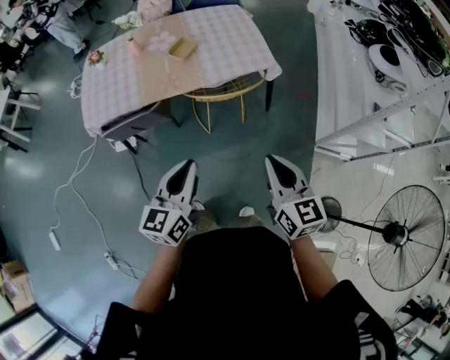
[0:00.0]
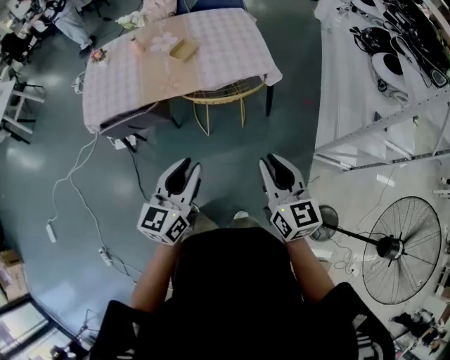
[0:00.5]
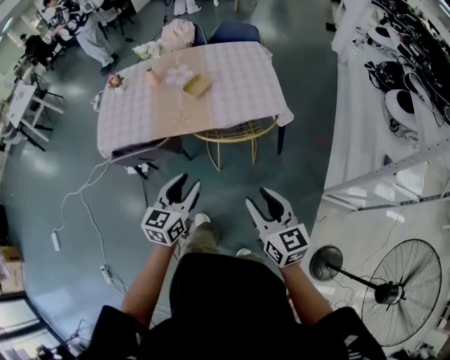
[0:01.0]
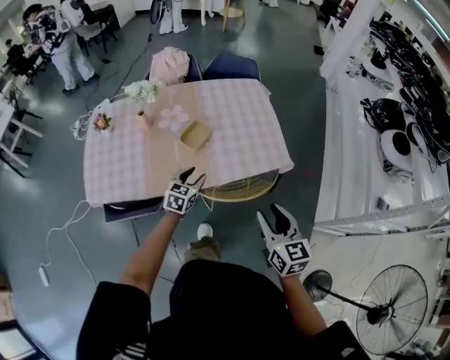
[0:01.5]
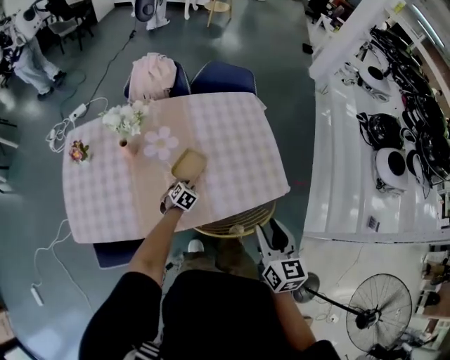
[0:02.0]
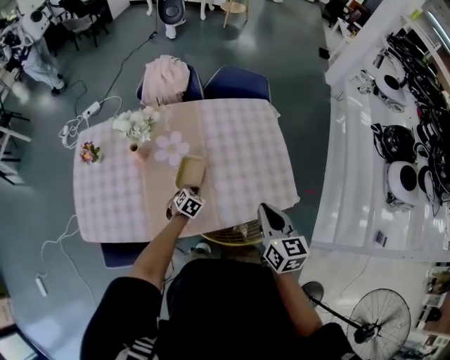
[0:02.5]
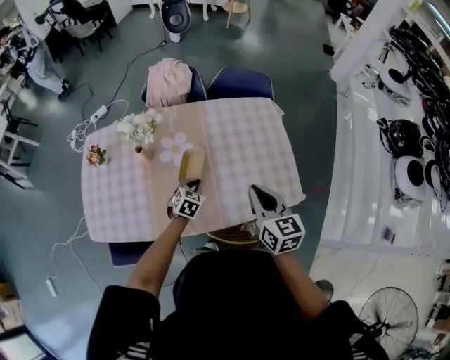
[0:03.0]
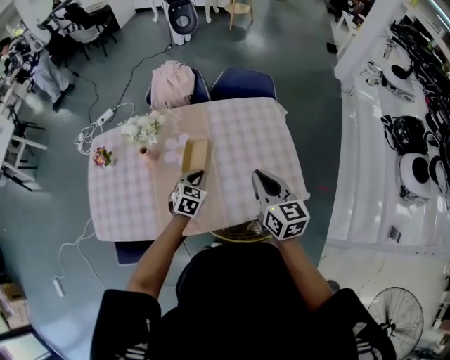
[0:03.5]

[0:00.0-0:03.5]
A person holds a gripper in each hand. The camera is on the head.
0:00.0 to 0:02.0: Both grippers are carried forward, approximately 50 cm. The right gripper opens up. Meanwhile the left gripper is displaced downward by about 40 cm, angles its fingers downward, by roughly 50 degrees, and opens its fingers.
0:02.0 to 0:03.5: The right gripper shifts some 15 cm forward, and closes; the left gripper travels upward by roughly 15 cm, and closes up.

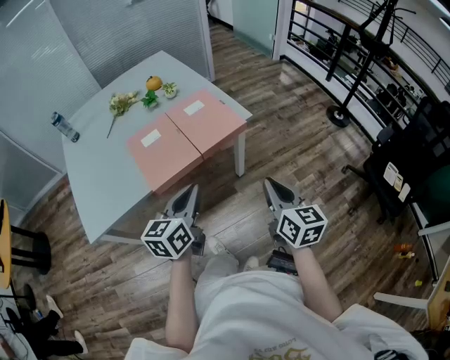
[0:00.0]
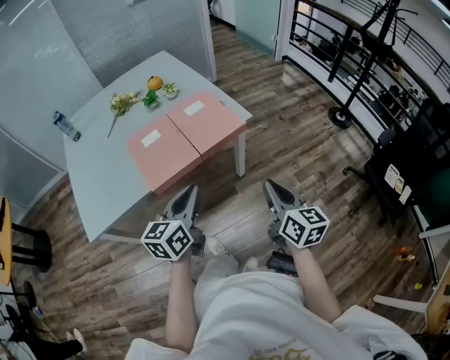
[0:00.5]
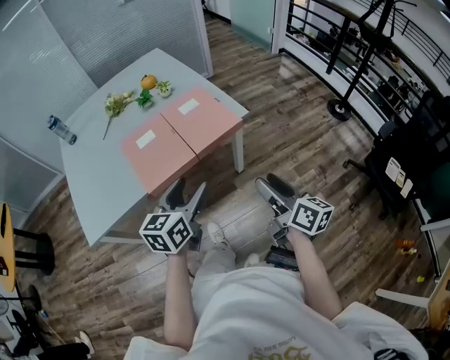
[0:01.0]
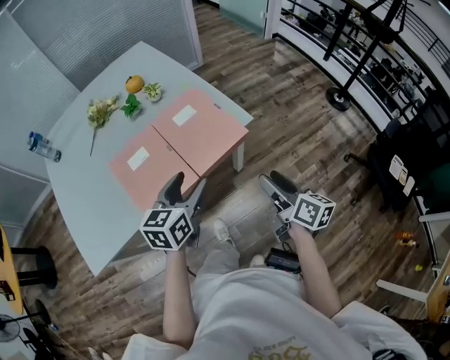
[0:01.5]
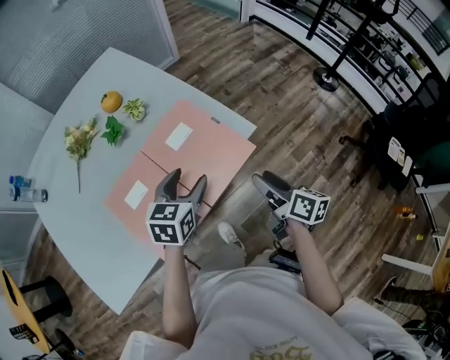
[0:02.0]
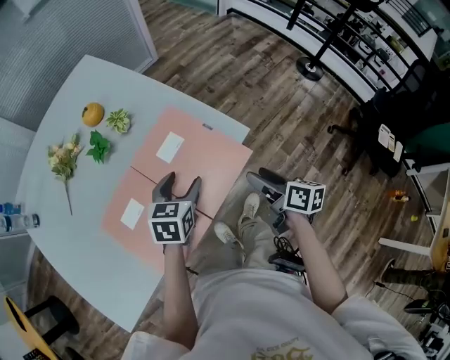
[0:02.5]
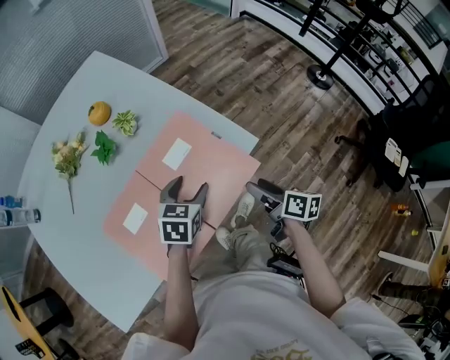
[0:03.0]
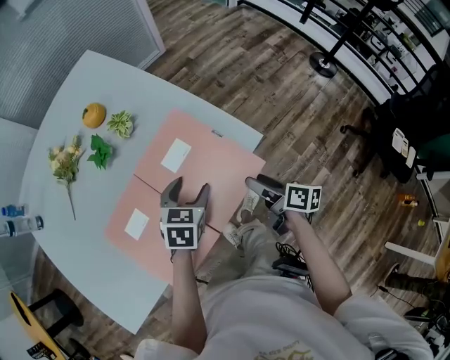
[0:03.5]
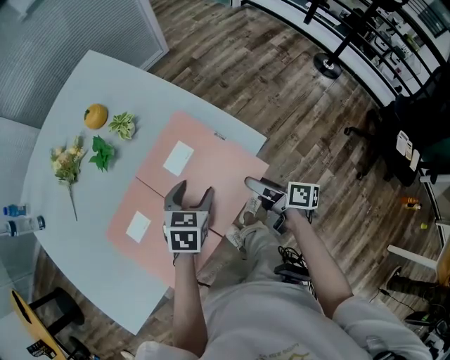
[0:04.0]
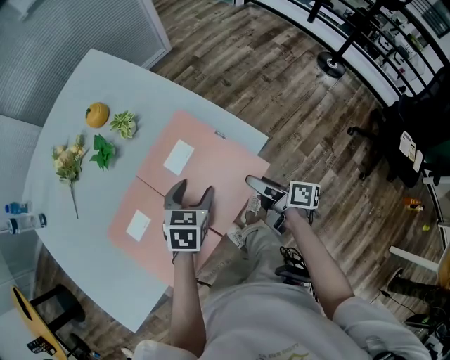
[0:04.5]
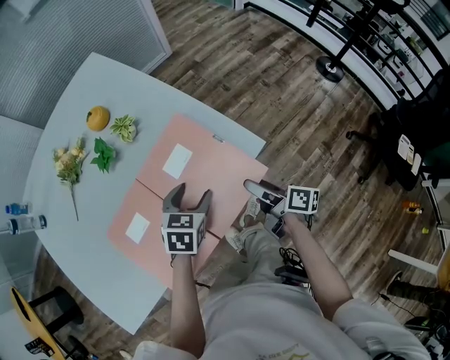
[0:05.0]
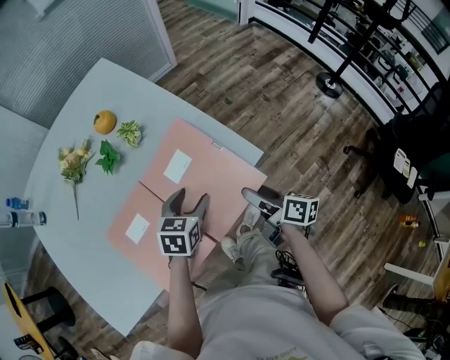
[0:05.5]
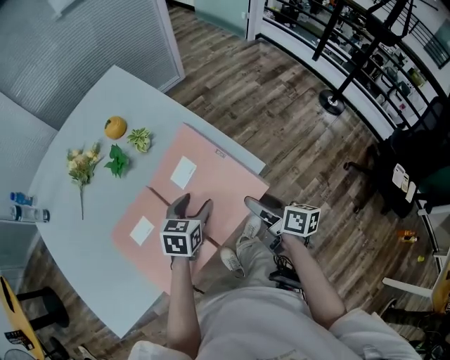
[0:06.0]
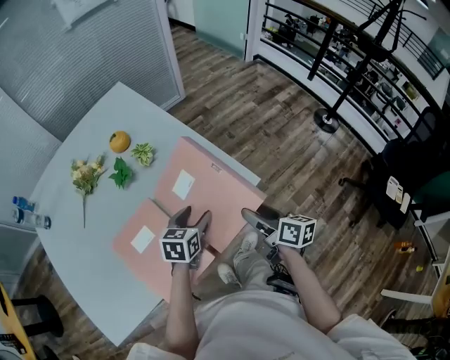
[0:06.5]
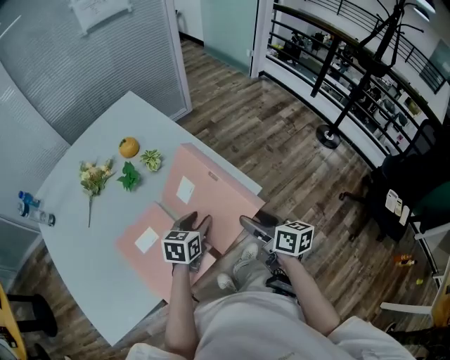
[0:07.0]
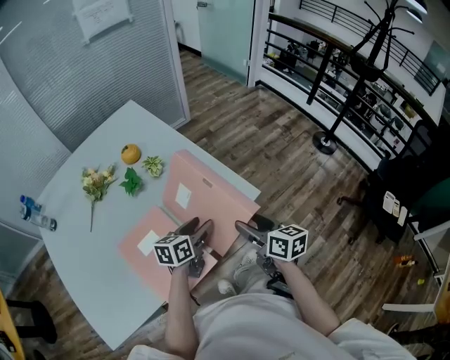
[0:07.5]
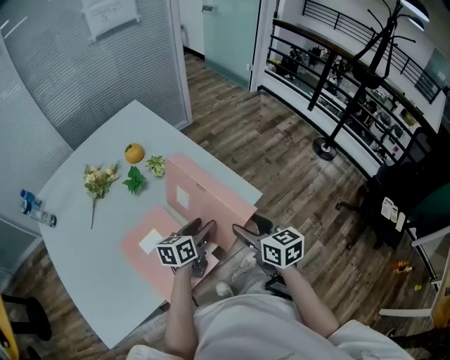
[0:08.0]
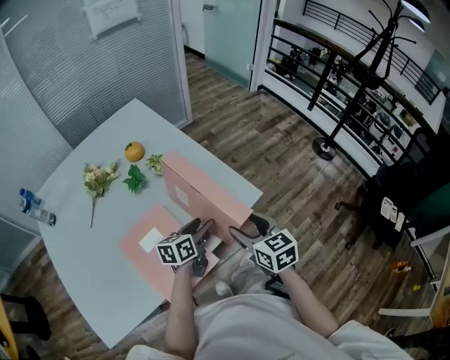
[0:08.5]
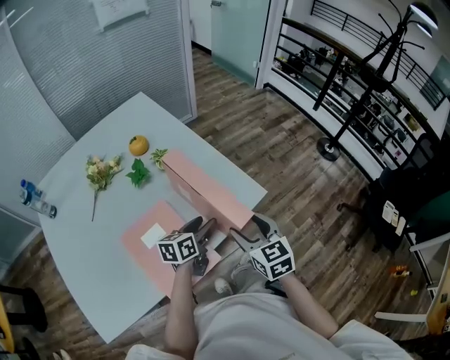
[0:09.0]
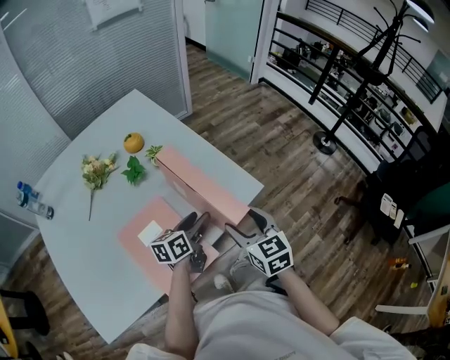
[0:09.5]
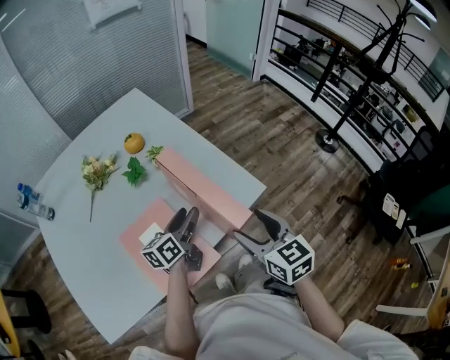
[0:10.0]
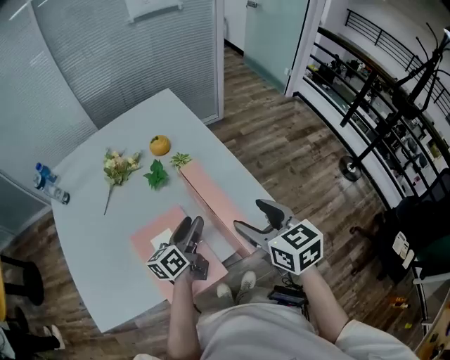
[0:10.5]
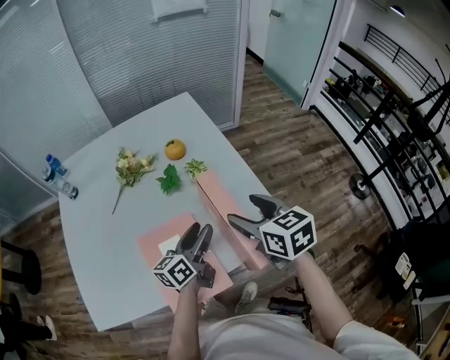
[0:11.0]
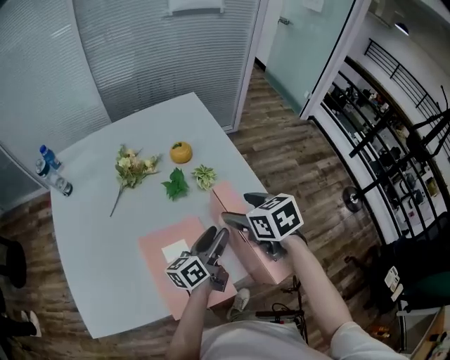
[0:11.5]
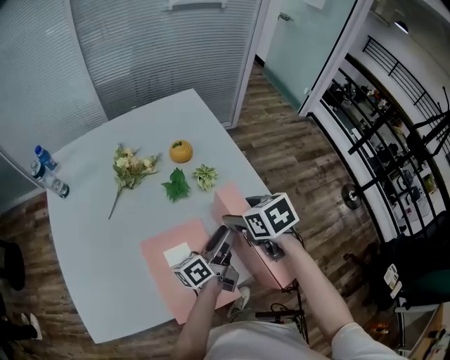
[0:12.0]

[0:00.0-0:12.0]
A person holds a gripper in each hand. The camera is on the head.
0:00.0 to 0:02.0: The right gripper goes some 30 cm forward and downward, swivels about 40 degrees, and opens its fingers; the left gripper travels forward by some 30 cm, rotates roughly 30 degrees, and opens.
0:02.0 to 0:04.0: The grippers both shift downward and forward by about 15 cm.
0:04.0 to 0:06.0: The right gripper shifts about 10 cm upward.
0:06.0 to 0:08.0: The right gripper goes about 10 cm upward and to the left, and rotates roughly 40 degrees, while the left gripper moves about 5 cm, and rotates approximately 30 degrees.
0:08.0 to 0:10.0: The right gripper moves upward, roughly 5 cm; the left gripper moves to the left, some 5 cm.
0:10.0 to 0:12.0: The right gripper is displaced forward and to the left by some 25 cm, and turns by some 40 degrees. Meanwhile the left gripper is displaced forward by some 10 cm, and rotates some 30 degrees.

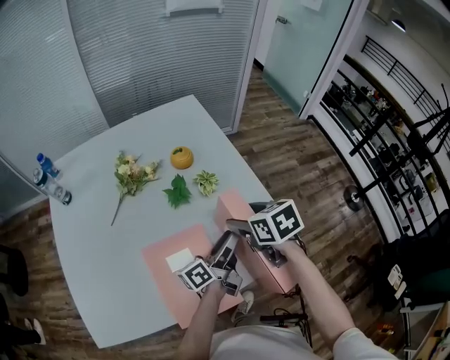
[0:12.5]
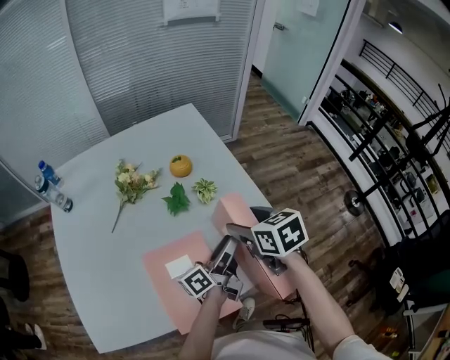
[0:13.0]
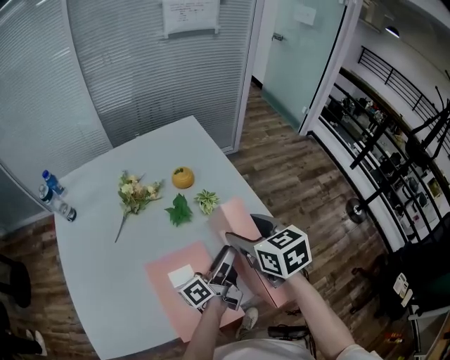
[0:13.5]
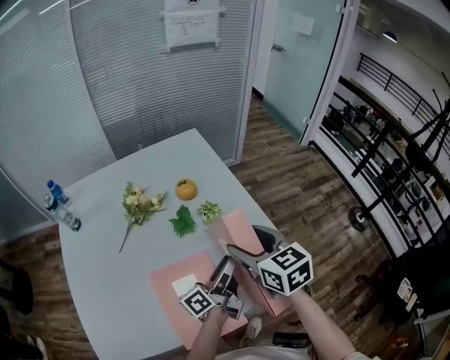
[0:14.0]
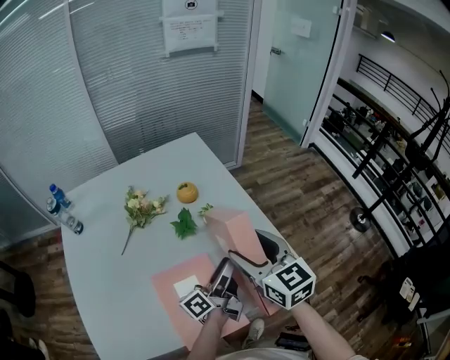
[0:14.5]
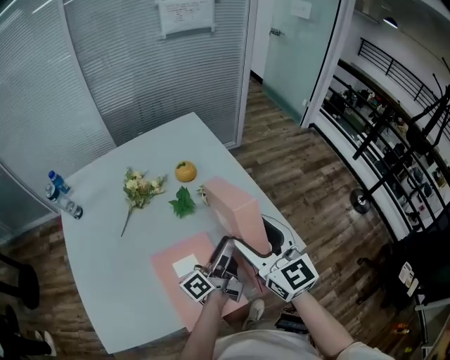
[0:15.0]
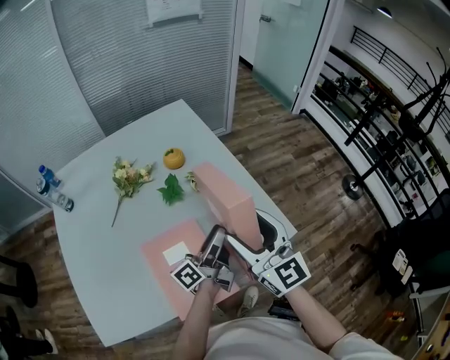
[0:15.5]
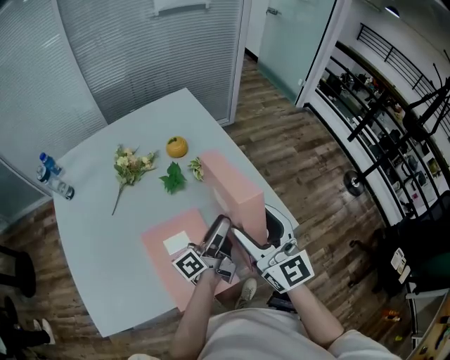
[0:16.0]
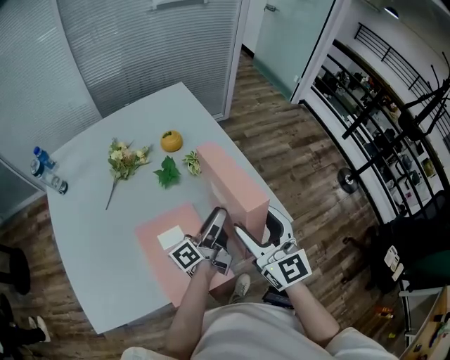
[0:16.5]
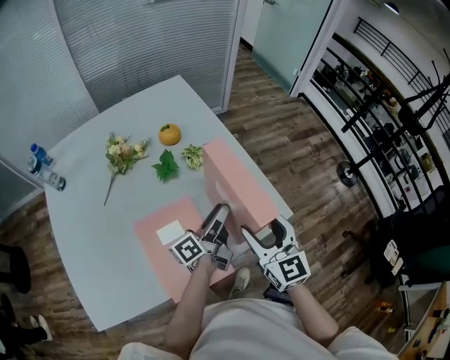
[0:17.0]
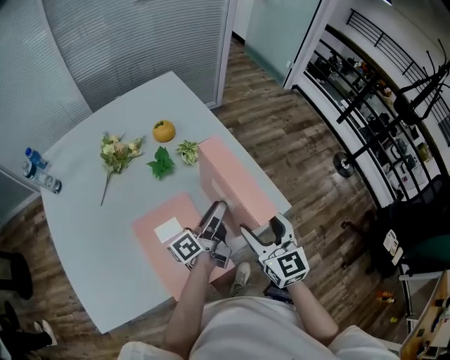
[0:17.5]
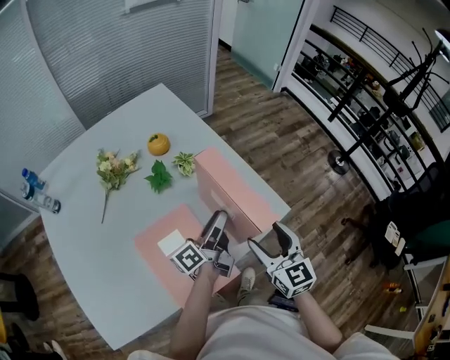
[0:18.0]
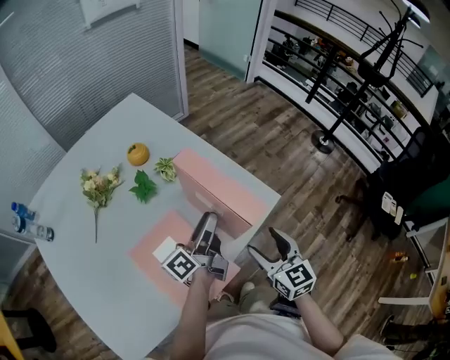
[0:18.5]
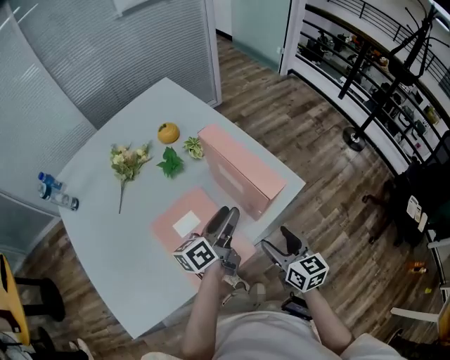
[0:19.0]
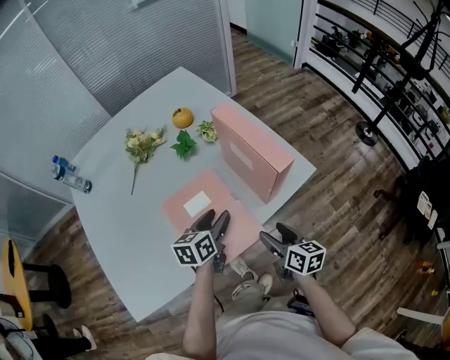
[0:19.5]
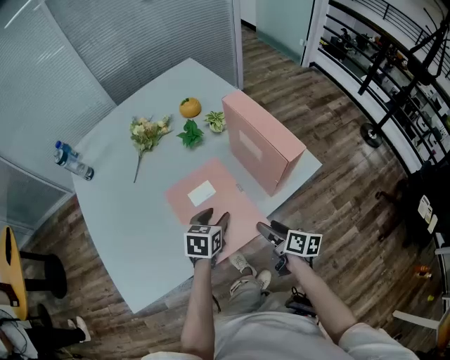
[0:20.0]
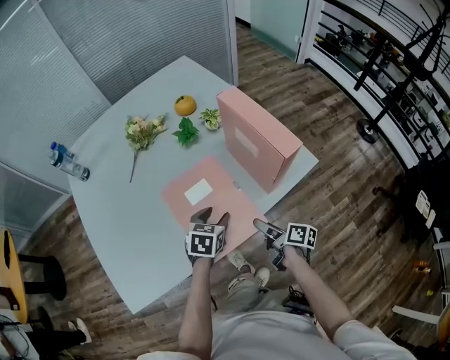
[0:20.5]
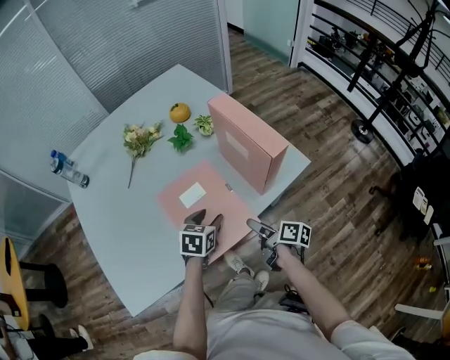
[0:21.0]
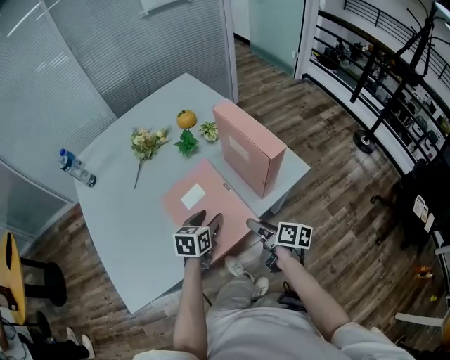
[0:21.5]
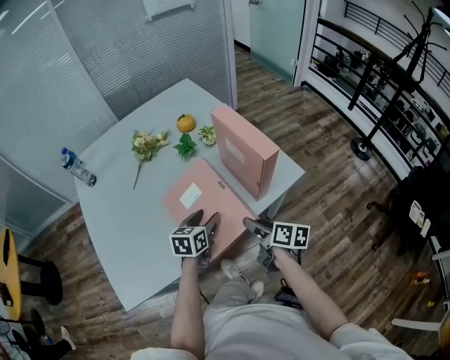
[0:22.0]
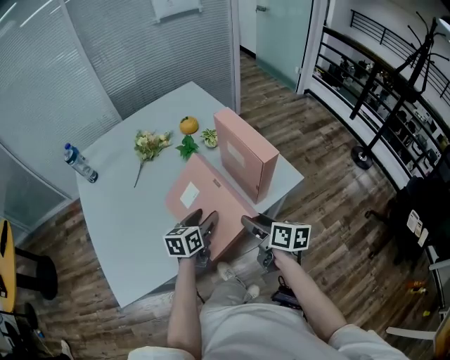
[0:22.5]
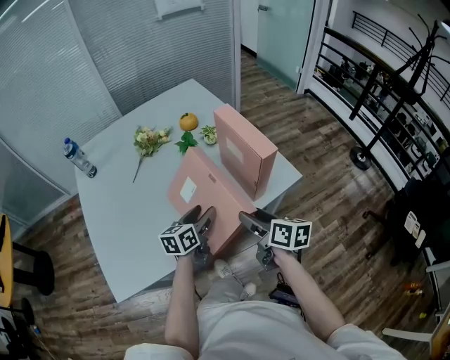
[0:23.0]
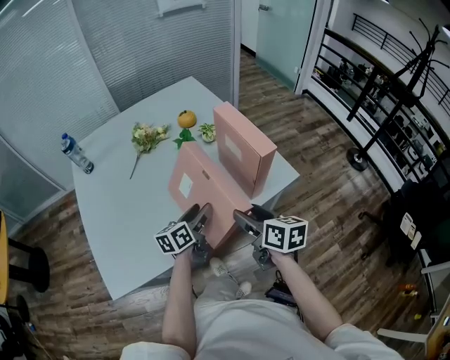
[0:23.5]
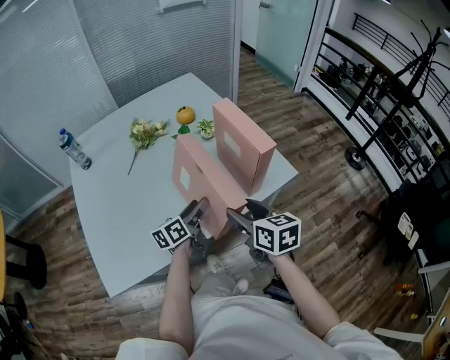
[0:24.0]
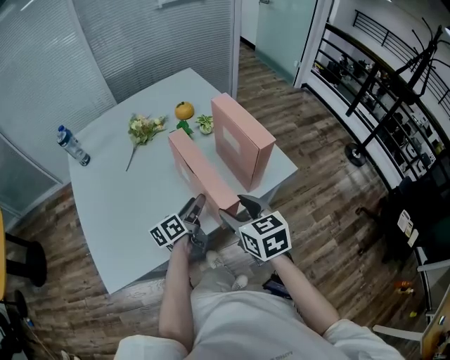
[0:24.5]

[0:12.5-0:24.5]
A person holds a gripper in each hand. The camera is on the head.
0:12.5 to 0:14.5: The right gripper shifts some 10 cm upward, and tilts its fingers roughly 30 degrees upward.
0:14.5 to 0:16.5: The right gripper goes roughly 10 cm backward and to the right.
0:16.5 to 0:18.5: The right gripper is displaced downward, backward and to the right by about 15 cm, and swivels approximately 30 degrees.
0:18.5 to 0:20.5: The left gripper moves downward, backward and to the left, about 20 cm, and tilts its fingers some 60 degrees downward. The right gripper moves downward, to the left and backward, about 20 cm, and rolls clockwise, seen from behind, by some 60 degrees.
0:20.5 to 0:22.5: The left gripper travels upward by approximately 5 cm, and changes its angle by approximately 30 degrees. The right gripper moves upward, some 15 cm, and changes its angle by roughly 30 degrees.
0:22.5 to 0:24.5: The left gripper changes its angle by some 30 degrees; the right gripper goes some 10 cm upward and to the left, and rotates roughly 40 degrees.
